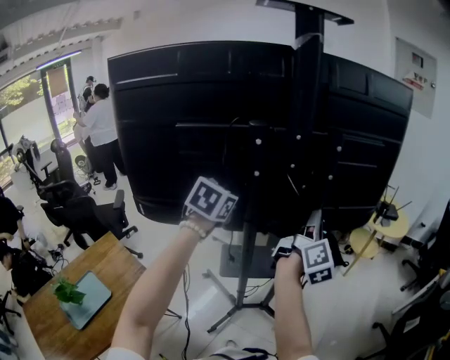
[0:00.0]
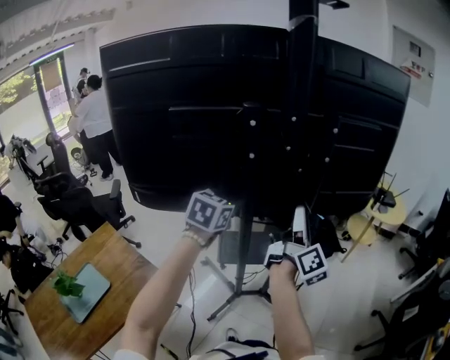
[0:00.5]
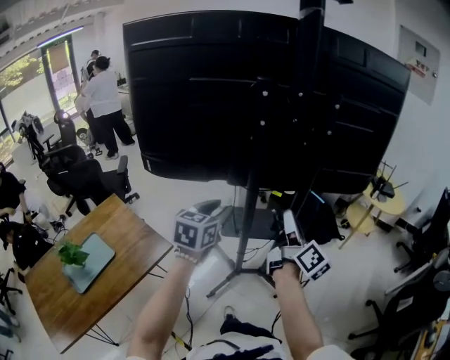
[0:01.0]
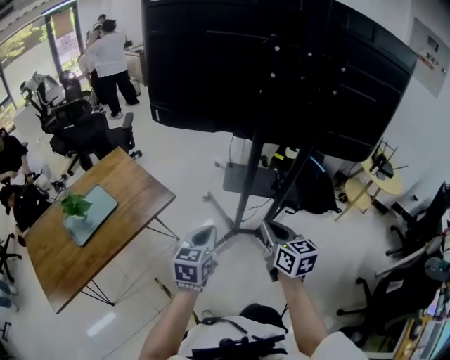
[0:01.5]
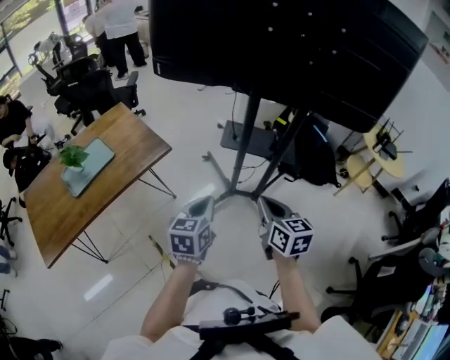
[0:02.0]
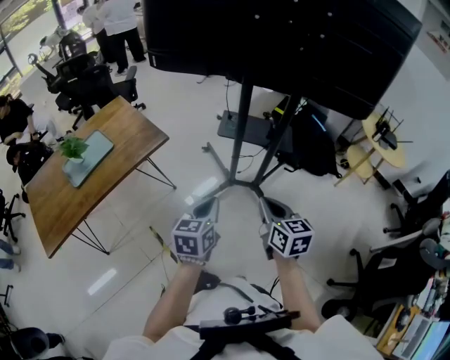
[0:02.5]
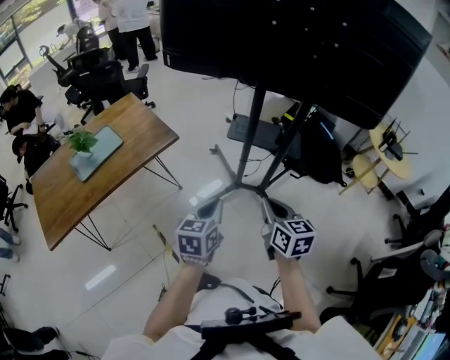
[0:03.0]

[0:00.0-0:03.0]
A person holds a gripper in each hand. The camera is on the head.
0:00.0 to 0:01.5: The left gripper ends up approximately 50 cm from where it was, rotates some 30 degrees, and opens, then closes again. The right gripper changes place by some 40 cm, angles its fingers downward, by some 40 degrees, and opens and closes again.
0:01.5 to 0:03.0: The left gripper moves backward and to the right, some 15 cm; the right gripper goes roughly 10 cm backward.

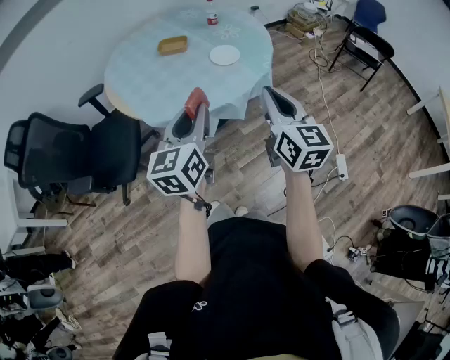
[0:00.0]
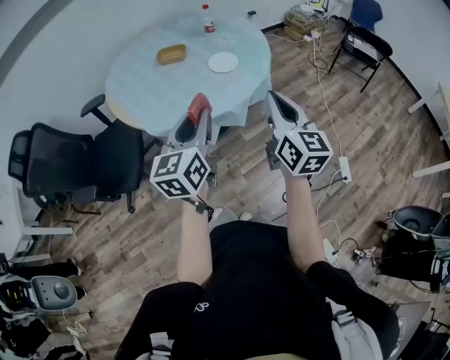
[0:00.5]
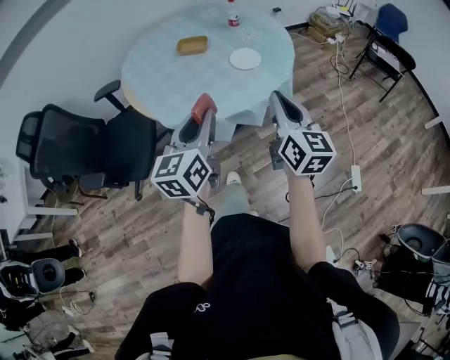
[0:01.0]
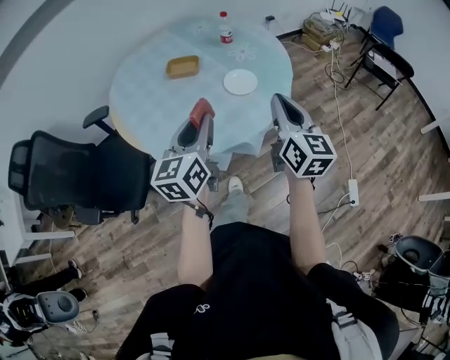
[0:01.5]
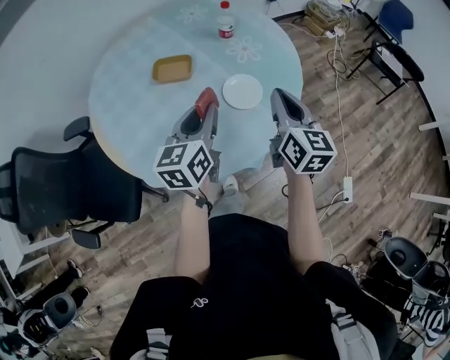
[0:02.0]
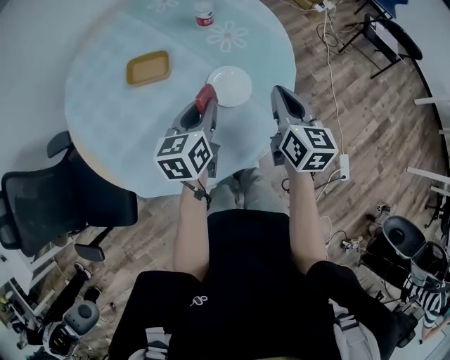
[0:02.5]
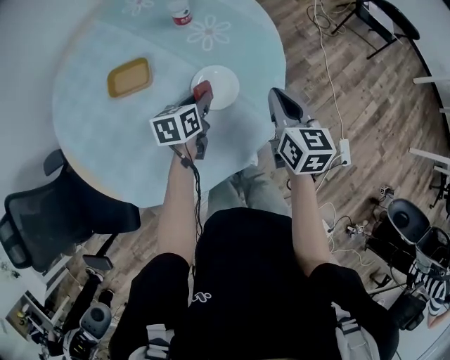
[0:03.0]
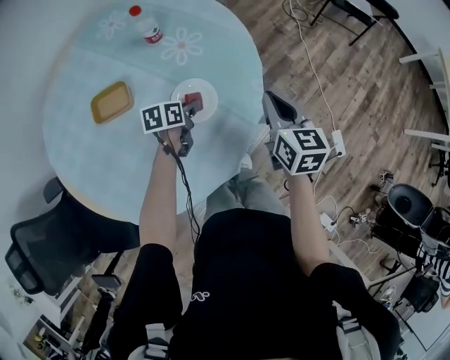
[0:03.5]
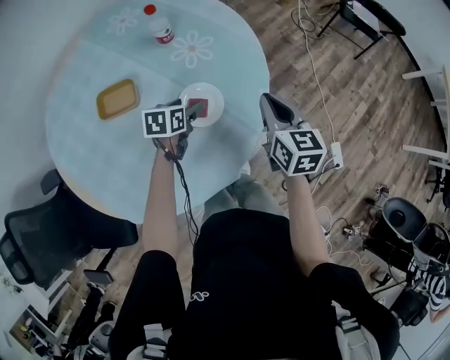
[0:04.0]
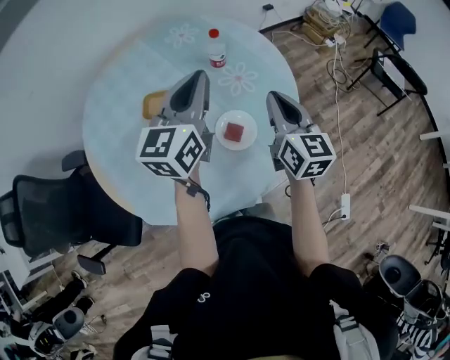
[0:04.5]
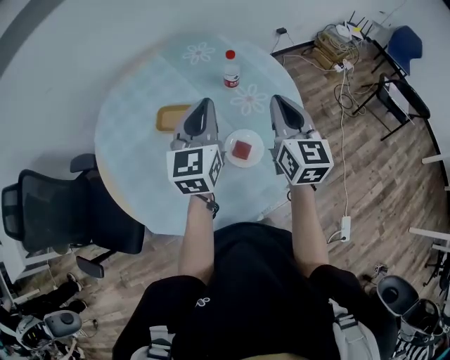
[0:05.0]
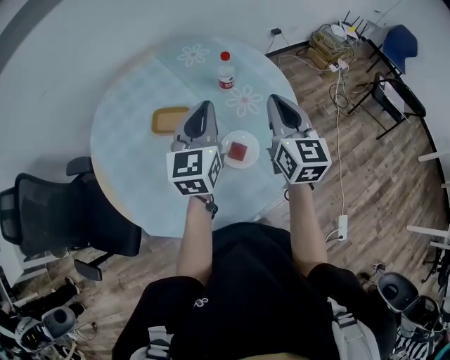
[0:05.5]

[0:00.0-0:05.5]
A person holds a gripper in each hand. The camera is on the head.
0:00.0 to 0:02.0: The two grippers go roughly 40 cm forward.
0:02.0 to 0:03.5: The right gripper changes place by roughly 15 cm, while the left gripper is displaced downward by approximately 25 cm, and angles its fingers downward, by roughly 30 degrees.
0:03.5 to 0:05.5: The right gripper is displaced upward by some 15 cm, and swivels approximately 30 degrees, while the left gripper is displaced upward by some 35 cm, tilts its fingers some 40 degrees upward, and opens, then closes again.

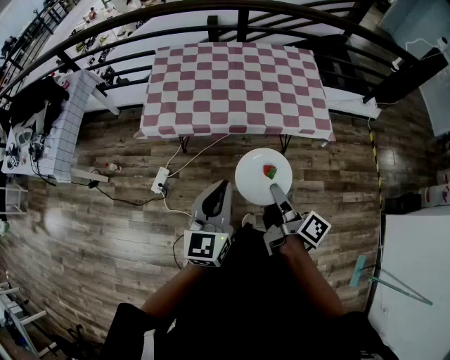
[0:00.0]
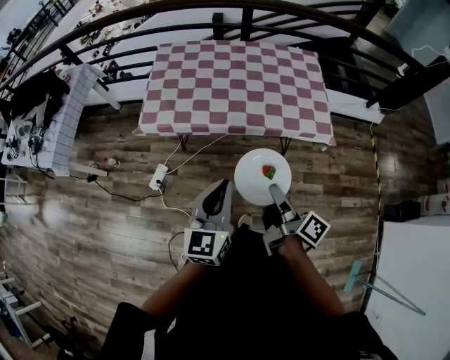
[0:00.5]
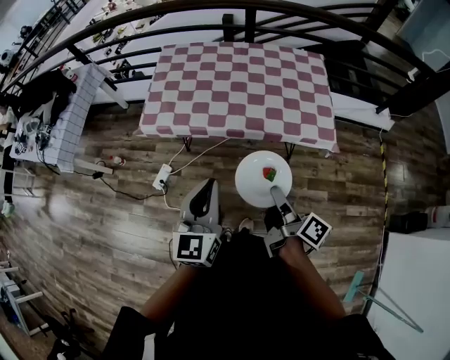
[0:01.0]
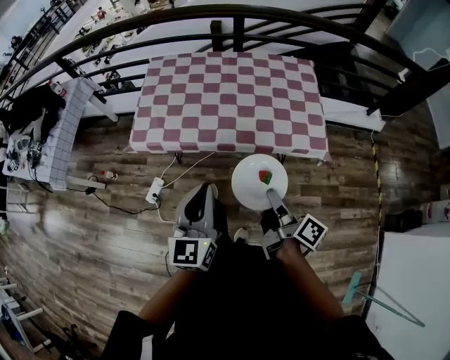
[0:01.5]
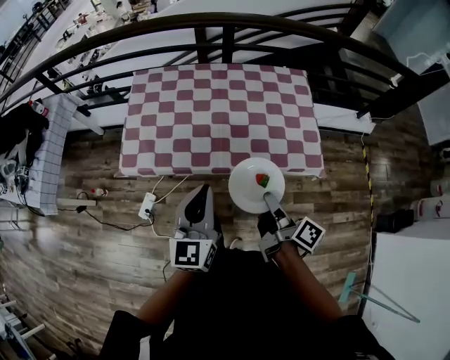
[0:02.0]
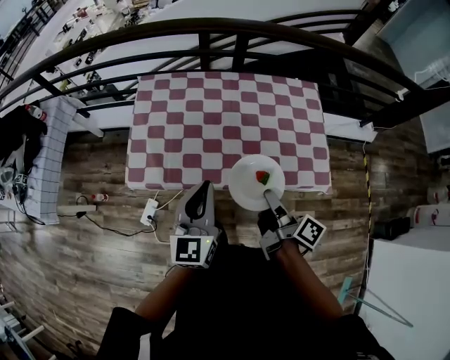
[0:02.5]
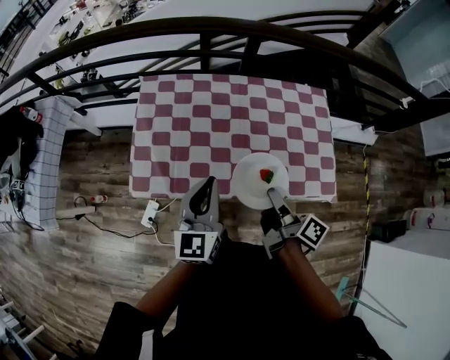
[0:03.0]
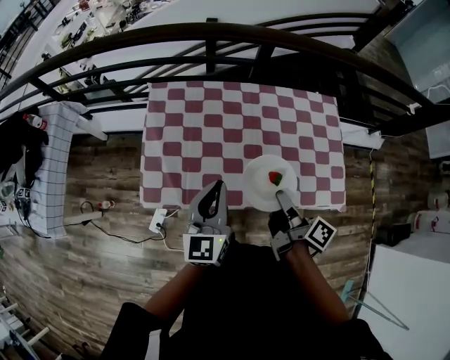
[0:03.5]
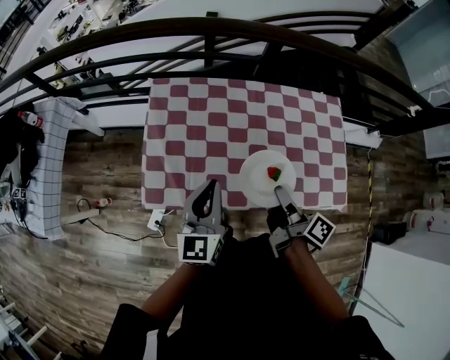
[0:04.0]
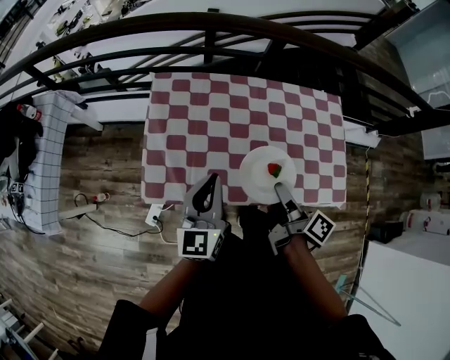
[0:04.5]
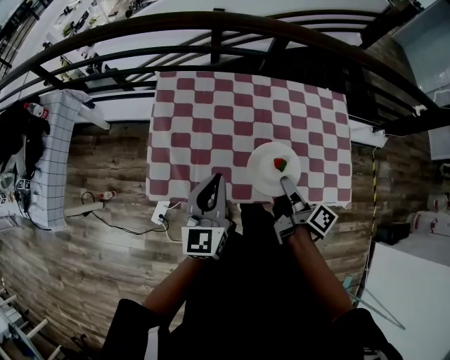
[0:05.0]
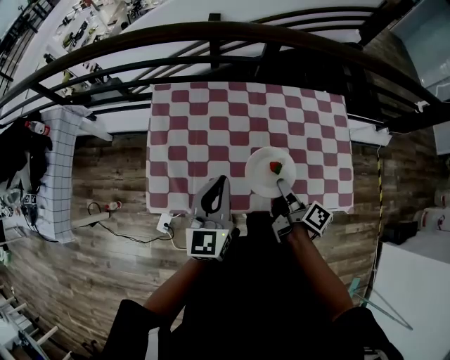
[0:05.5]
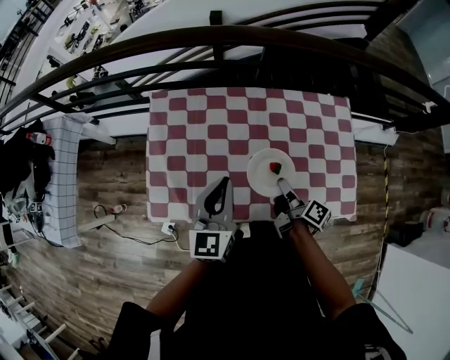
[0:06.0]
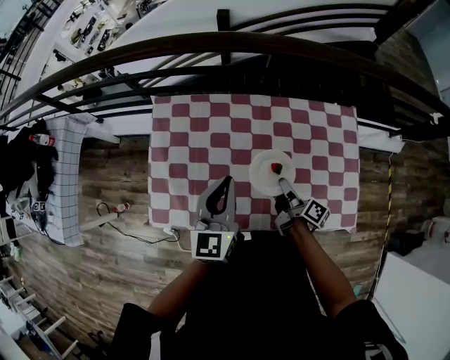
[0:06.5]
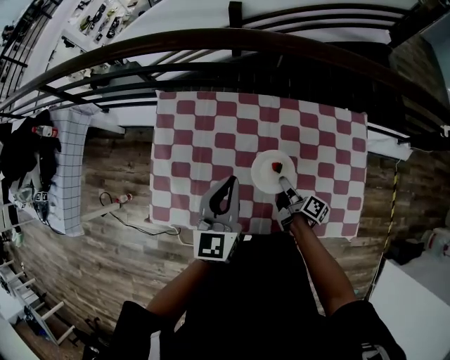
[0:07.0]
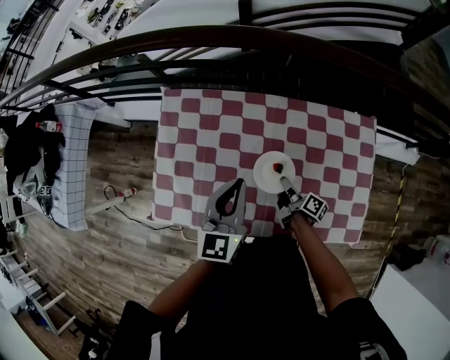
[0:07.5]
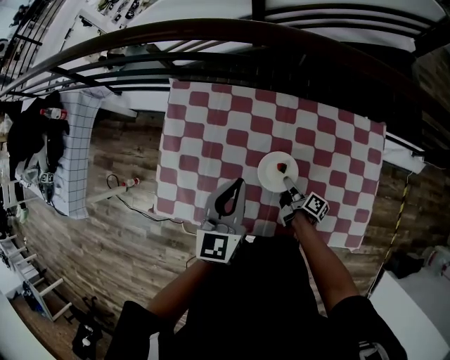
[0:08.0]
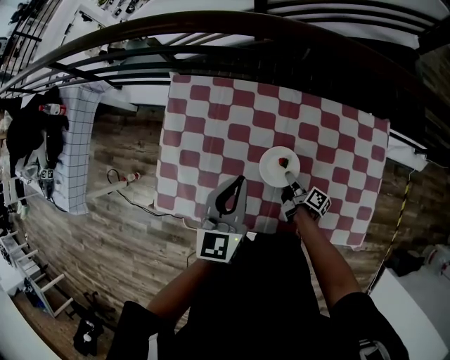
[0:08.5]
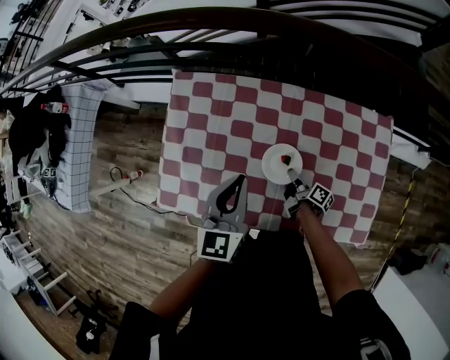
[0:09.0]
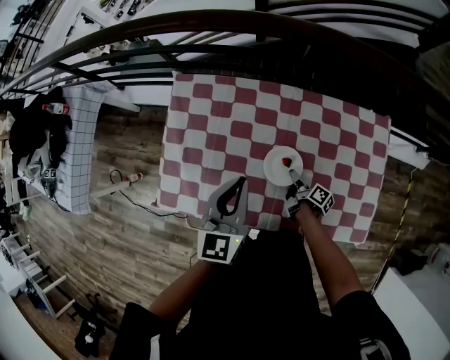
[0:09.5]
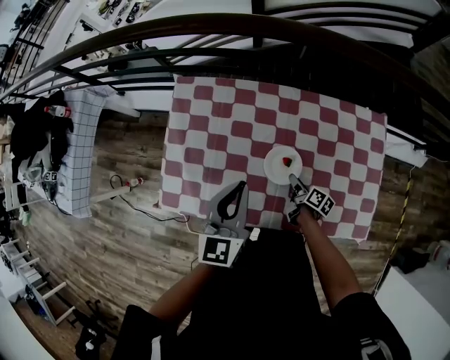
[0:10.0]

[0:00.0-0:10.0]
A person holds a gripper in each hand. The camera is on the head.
0:00.0 to 0:02.0: Both grippers move forward, roughly 20 cm.
0:02.0 to 0:04.0: The two grippers go approximately 30 cm forward and to the left.
0:04.0 to 0:06.0: The right gripper moves downward, forward and to the right, about 15 cm, while the left gripper is displaced to the right and forward by some 10 cm.
0:06.0 to 0:08.0: The left gripper goes roughly 10 cm forward, while the right gripper heads downward and forward, covering some 20 cm.
0:08.0 to 0:10.0: The right gripper opens up.

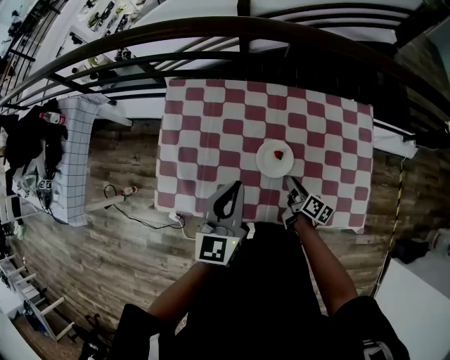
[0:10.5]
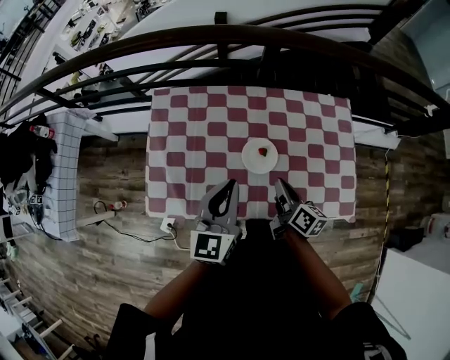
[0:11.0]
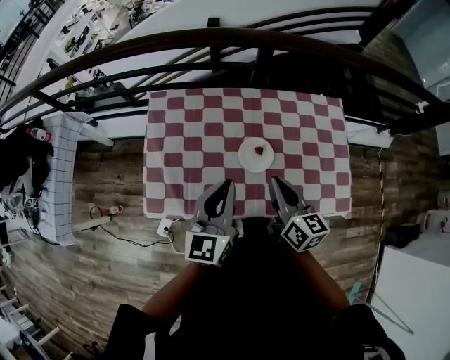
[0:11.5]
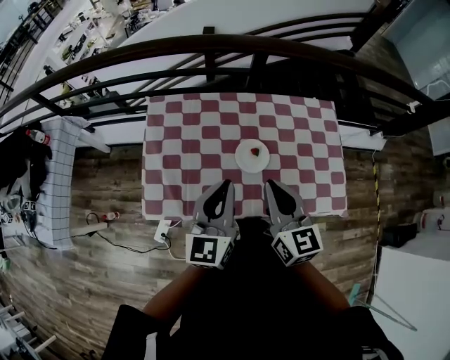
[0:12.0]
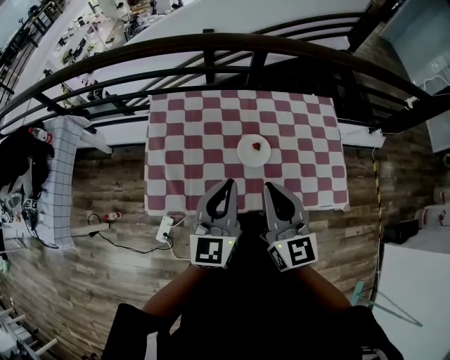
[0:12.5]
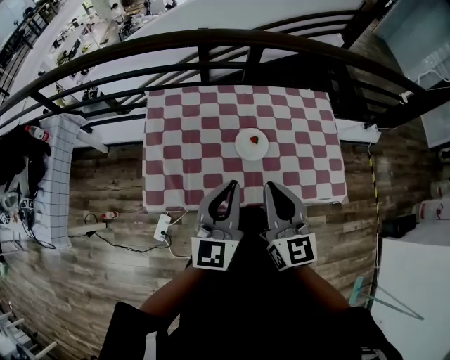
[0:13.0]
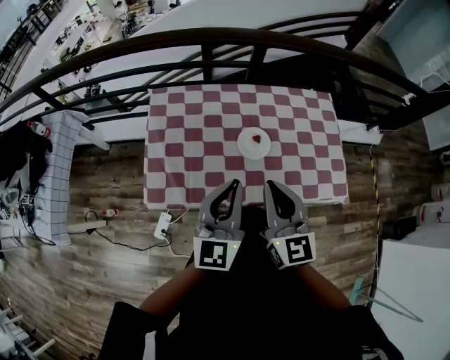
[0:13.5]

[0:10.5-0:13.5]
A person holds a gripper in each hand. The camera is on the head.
0:10.5 to 0:12.0: The right gripper is displaced upward by some 30 cm, rotates around the line of its fingers by approximately 50 degrees, counterclockwise from behind, and closes up, while the left gripper moves backward and upward, approximately 10 cm.
0:12.0 to 0:13.5: Both grippers travel together backward, approximately 5 cm.

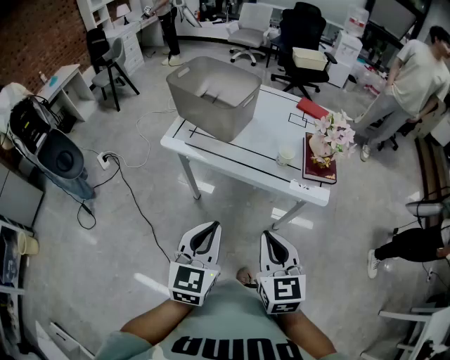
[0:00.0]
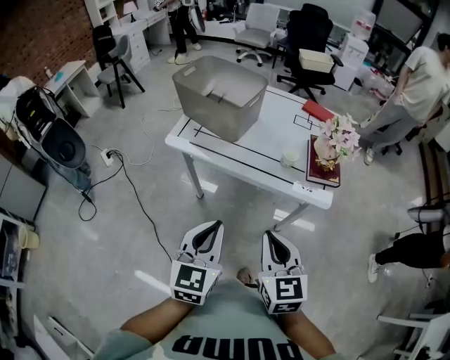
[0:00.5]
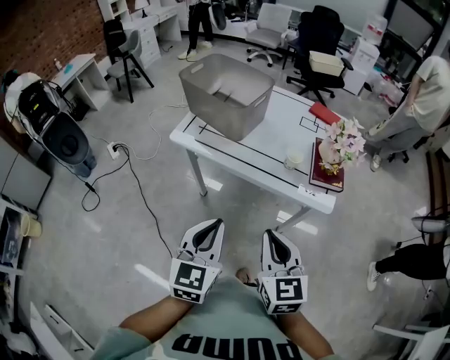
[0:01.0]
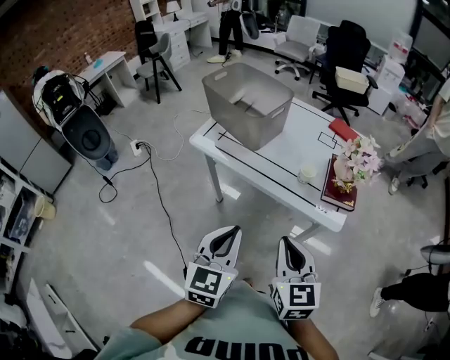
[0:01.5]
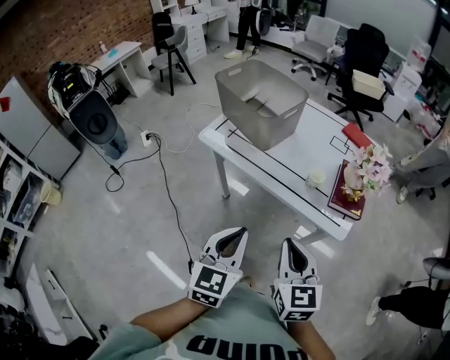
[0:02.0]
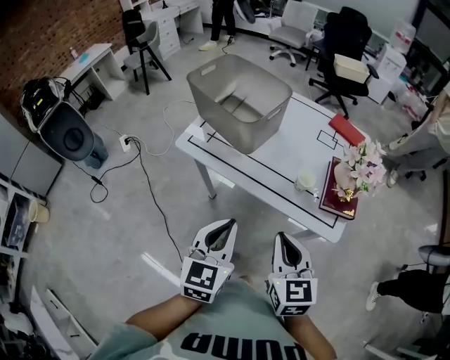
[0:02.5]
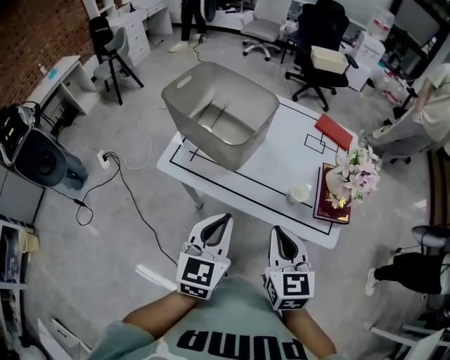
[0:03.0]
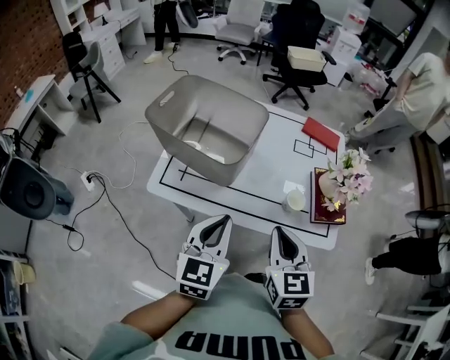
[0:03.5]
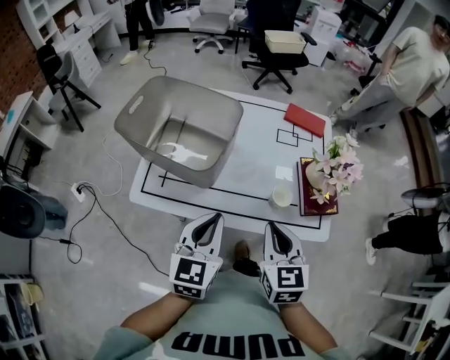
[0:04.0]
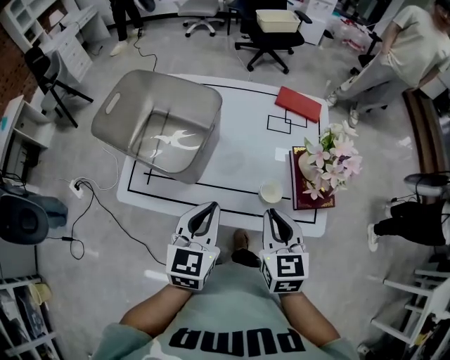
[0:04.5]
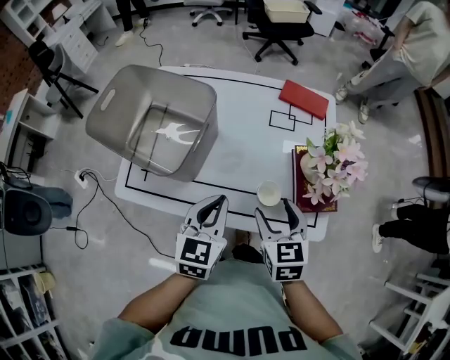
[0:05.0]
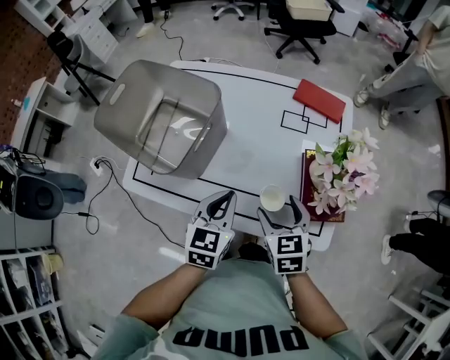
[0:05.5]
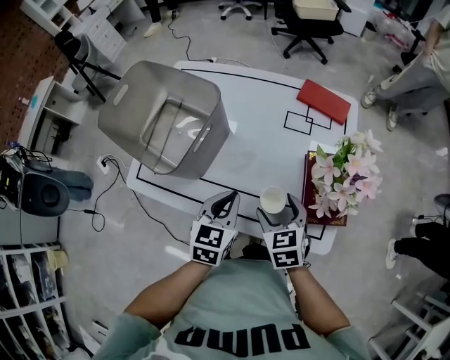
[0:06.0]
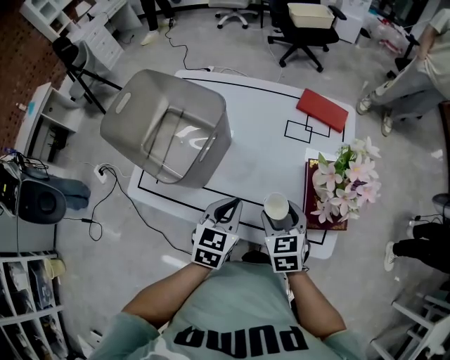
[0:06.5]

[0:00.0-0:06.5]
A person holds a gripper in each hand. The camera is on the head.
0:00.0 to 0:02.0: Both grippers move to the right, some 5 cm.
0:02.0 to 0:04.5: Both grippers move forward, roughly 25 cm. The right gripper changes its angle by roughly 30 degrees, while the left gripper rotates approximately 20 degrees.
0:04.5 to 0:06.5: The left gripper heads downward, to the right and forward, covering roughly 15 cm. The right gripper moves downward and forward, roughly 15 cm, and opens its fingers.
